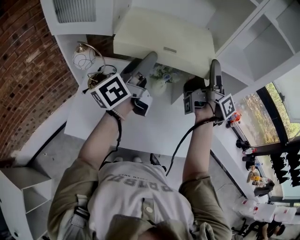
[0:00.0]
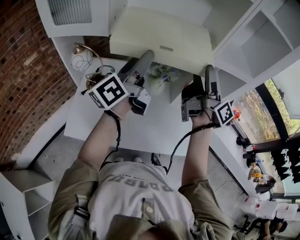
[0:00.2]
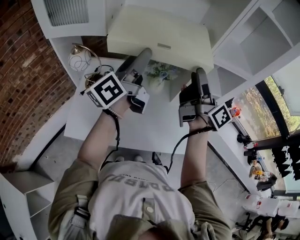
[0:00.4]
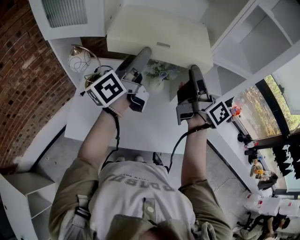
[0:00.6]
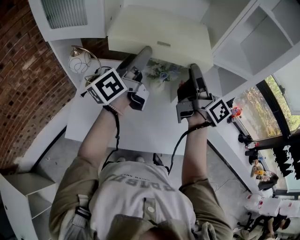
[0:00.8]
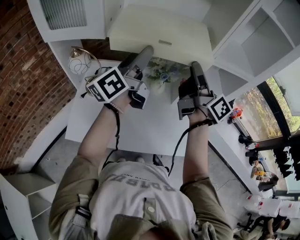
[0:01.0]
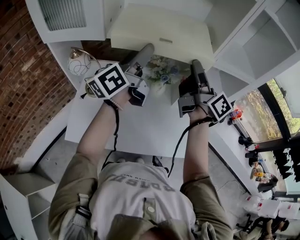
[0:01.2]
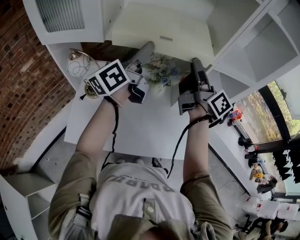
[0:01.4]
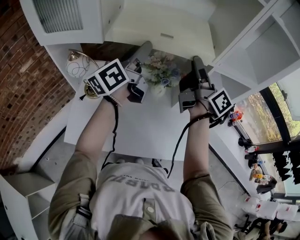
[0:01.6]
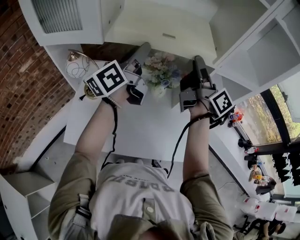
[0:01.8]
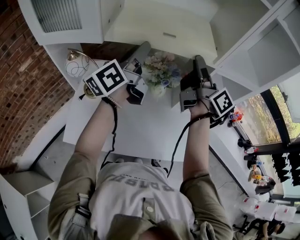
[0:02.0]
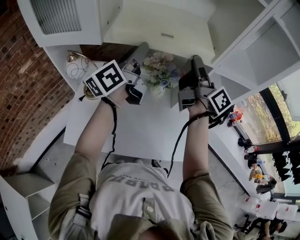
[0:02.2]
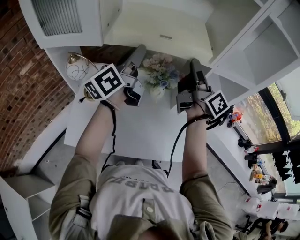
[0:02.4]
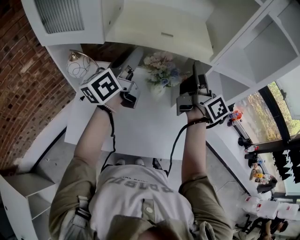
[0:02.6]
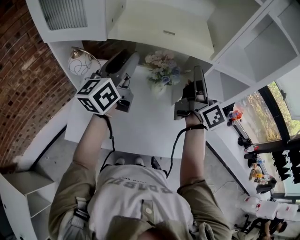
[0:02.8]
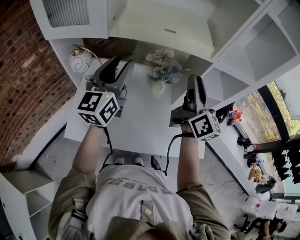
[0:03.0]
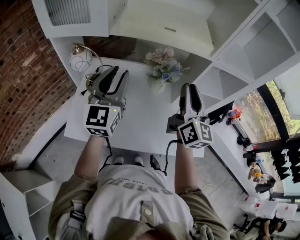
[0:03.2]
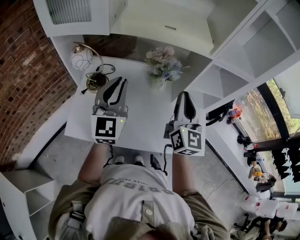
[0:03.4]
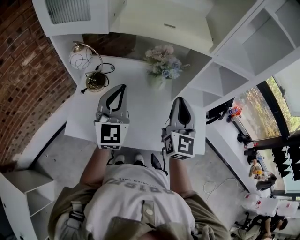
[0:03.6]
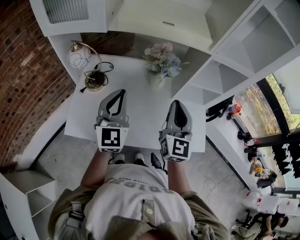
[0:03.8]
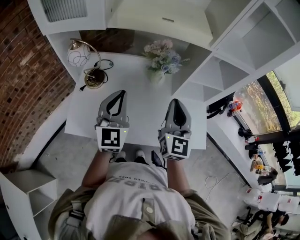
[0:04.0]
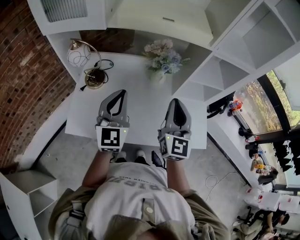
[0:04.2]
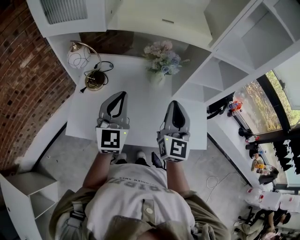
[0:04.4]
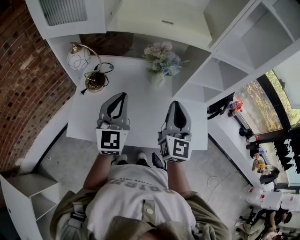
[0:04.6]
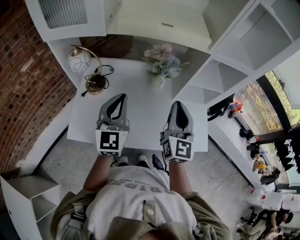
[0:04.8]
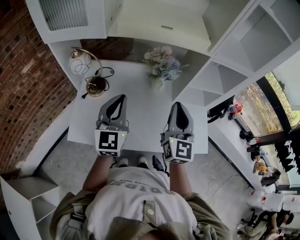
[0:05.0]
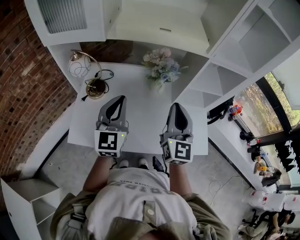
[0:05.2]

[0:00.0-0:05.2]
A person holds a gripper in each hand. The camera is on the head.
0.0 to 1.8 s: The right gripper shifts some 5 cm forward, and closes its fingers. The left gripper shifts some 10 cm forward.
1.8 to 3.4 s: Both grippers travel together backward and downward, some 15 cm. The left gripper rotates around the line of its fingers by roughly 60 degrees, clockwise from behind. Meanwhile the right gripper rolls counterclockwise, seen from behind, by about 60 degrees.
3.4 to 5.2 s: The left gripper changes place by approximately 5 cm.

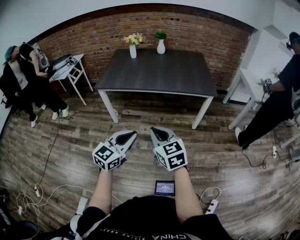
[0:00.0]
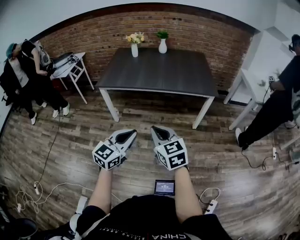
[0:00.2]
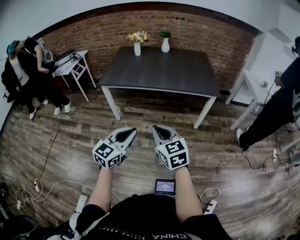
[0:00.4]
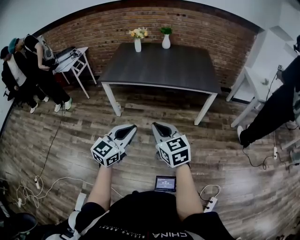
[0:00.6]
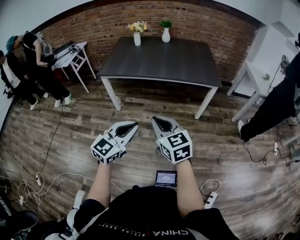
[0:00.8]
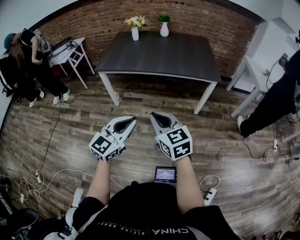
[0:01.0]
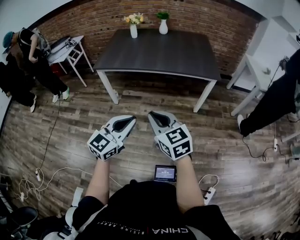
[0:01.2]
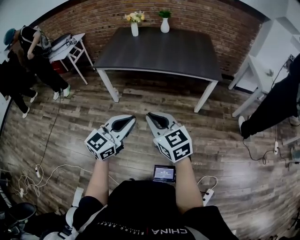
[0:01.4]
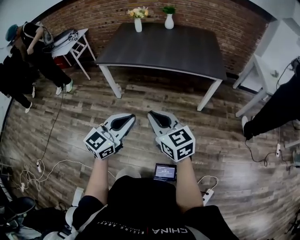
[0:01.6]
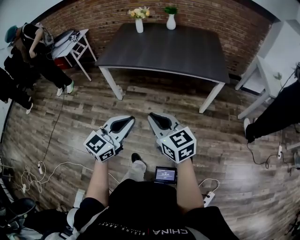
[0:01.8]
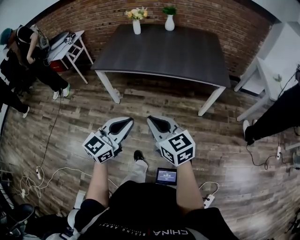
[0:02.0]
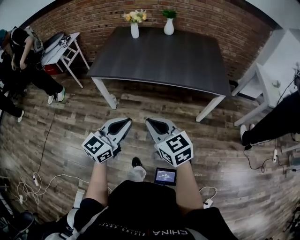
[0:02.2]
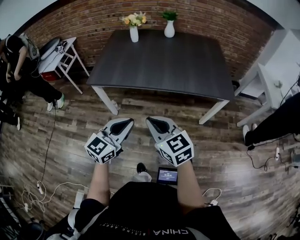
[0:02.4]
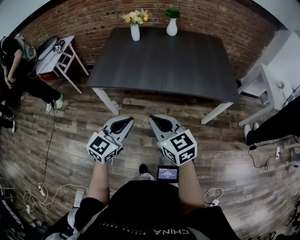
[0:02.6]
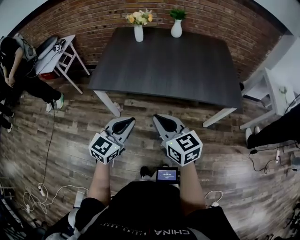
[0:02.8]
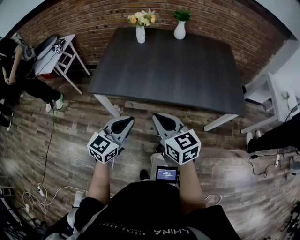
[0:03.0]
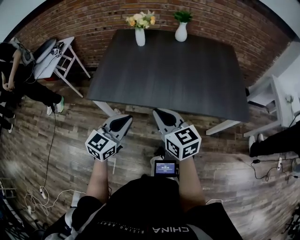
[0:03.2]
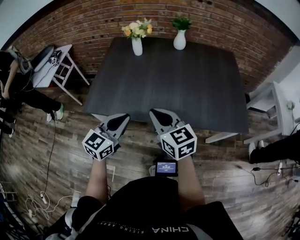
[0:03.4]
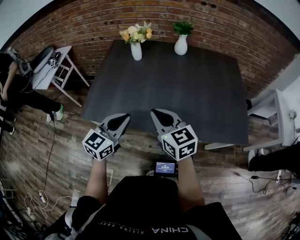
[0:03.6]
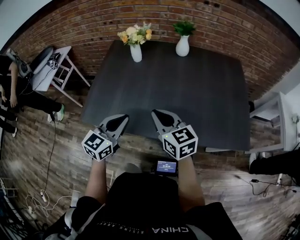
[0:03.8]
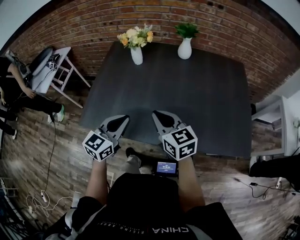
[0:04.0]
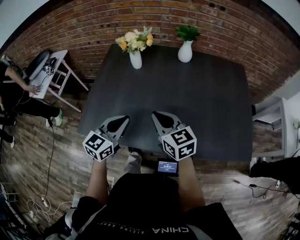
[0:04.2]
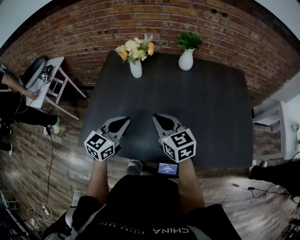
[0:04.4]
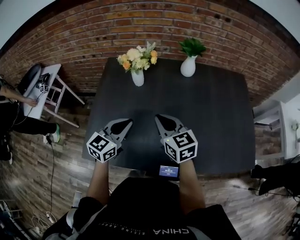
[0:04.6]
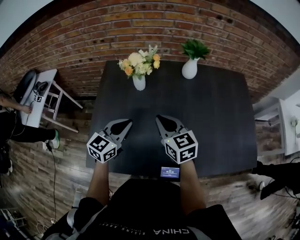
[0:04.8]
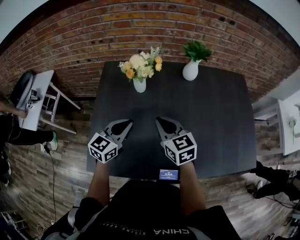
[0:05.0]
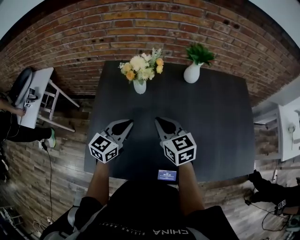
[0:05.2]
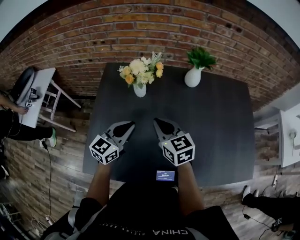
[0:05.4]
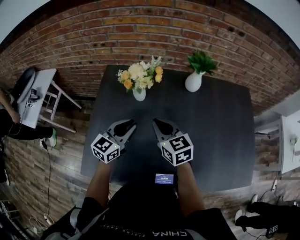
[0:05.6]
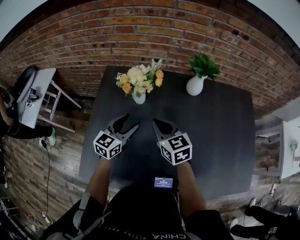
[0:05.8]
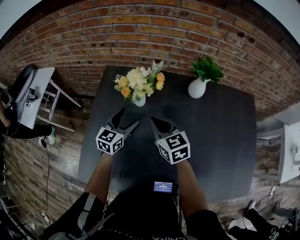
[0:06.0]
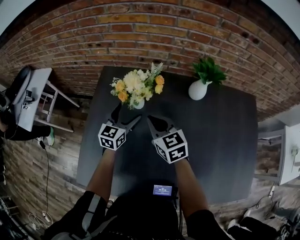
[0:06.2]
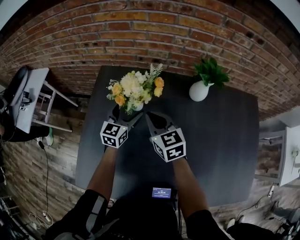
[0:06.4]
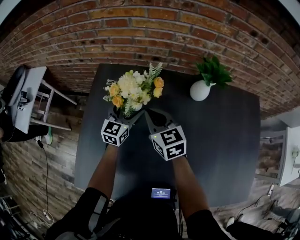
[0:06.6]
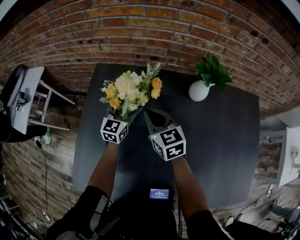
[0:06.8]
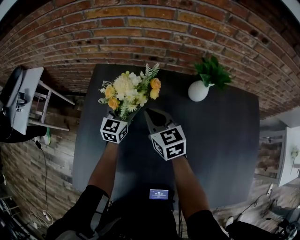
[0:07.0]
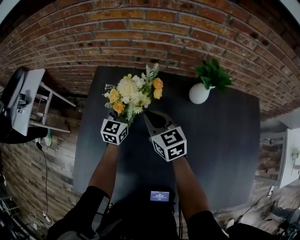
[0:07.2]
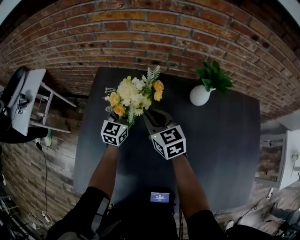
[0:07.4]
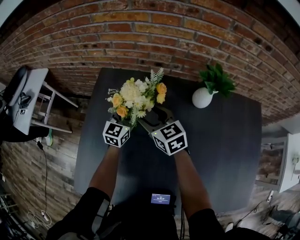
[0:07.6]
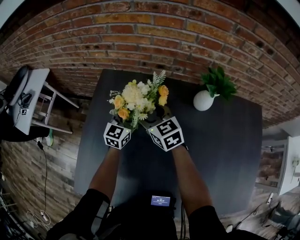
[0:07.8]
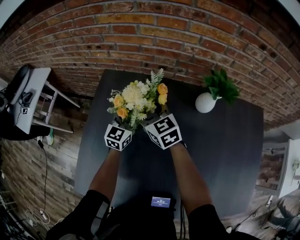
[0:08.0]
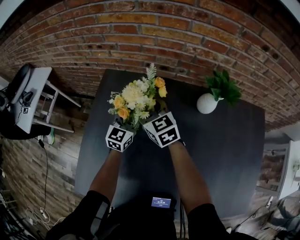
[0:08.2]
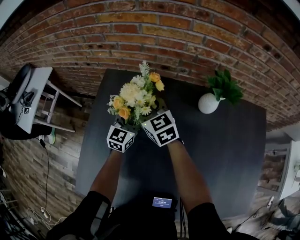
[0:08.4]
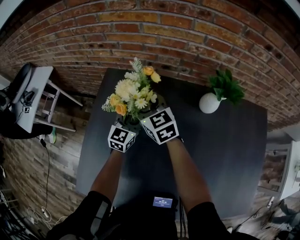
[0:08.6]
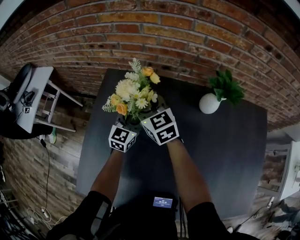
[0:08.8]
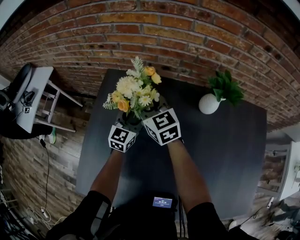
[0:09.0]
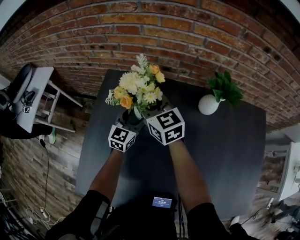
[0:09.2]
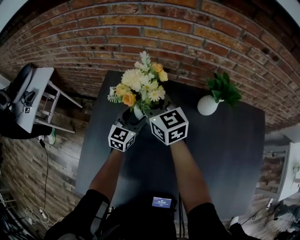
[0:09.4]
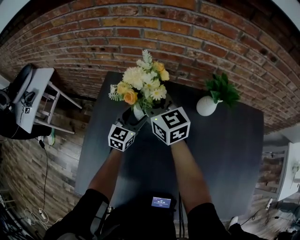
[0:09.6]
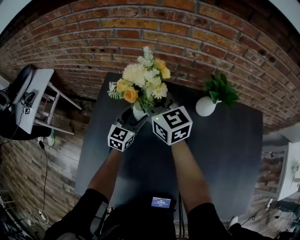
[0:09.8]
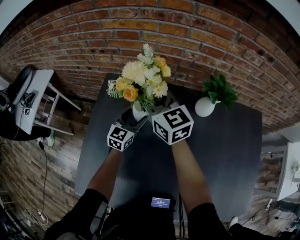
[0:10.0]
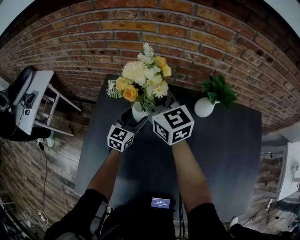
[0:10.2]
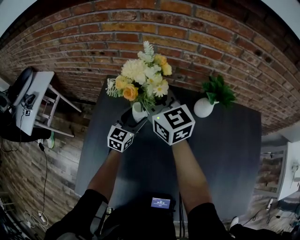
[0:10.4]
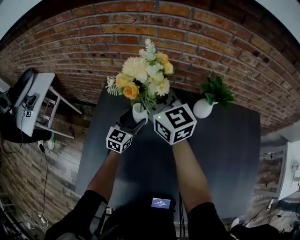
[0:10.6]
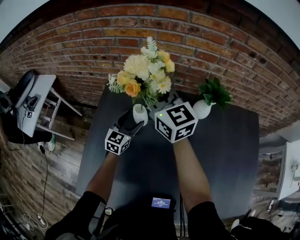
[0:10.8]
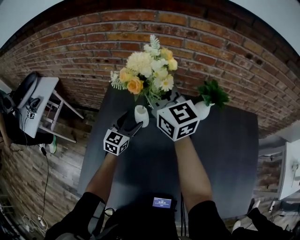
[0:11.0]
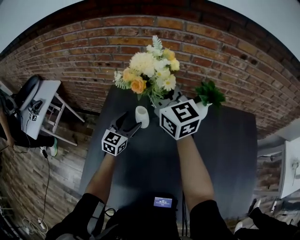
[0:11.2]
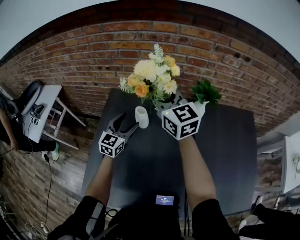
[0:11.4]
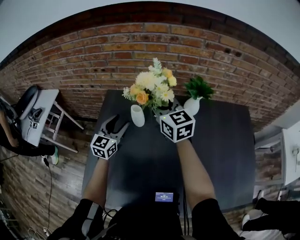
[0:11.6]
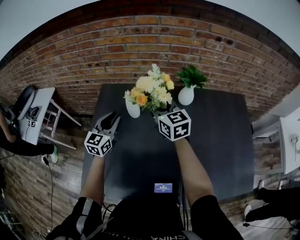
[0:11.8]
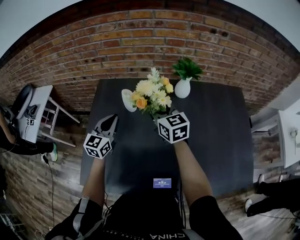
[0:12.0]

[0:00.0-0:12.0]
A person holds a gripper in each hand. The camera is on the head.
0.0 to 1.6 s: The left gripper changes place by some 5 cm.
1.6 to 3.0 s: The left gripper is displaced forward and to the left by approximately 40 cm; the right gripper shifts some 40 cm forward.
3.0 to 4.4 s: Both grippers travel together forward, some 40 cm.
4.4 to 6.0 s: Both grippers move forward, about 25 cm. The left gripper opens up.
6.0 to 7.6 s: Both grippers travel together forward, about 10 cm. The right gripper opens.
7.6 to 9.0 s: The right gripper travels forward by approximately 5 cm.
9.0 to 10.4 s: The right gripper heads upward, covering roughly 10 cm.
10.4 to 12.0 s: The left gripper goes roughly 20 cm backward and upward, and closes. Meanwhile the right gripper travels backward and to the right by some 20 cm.

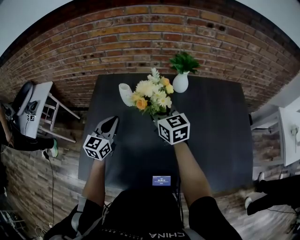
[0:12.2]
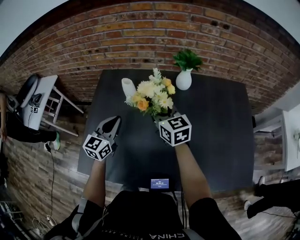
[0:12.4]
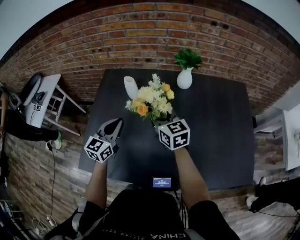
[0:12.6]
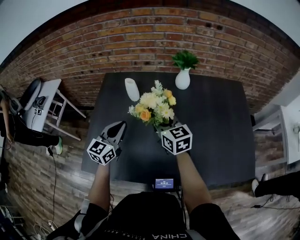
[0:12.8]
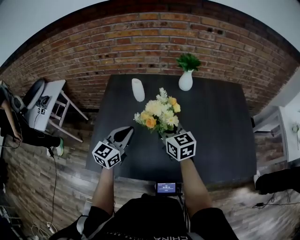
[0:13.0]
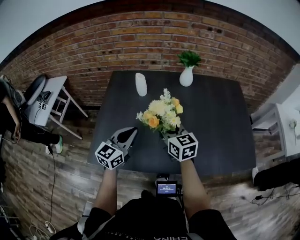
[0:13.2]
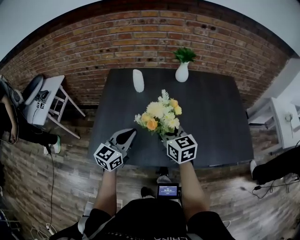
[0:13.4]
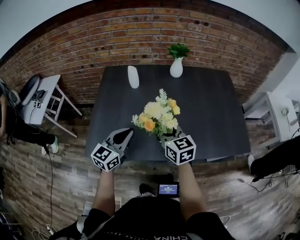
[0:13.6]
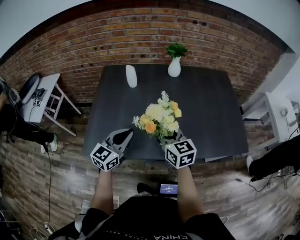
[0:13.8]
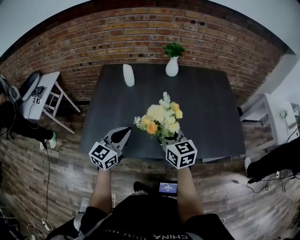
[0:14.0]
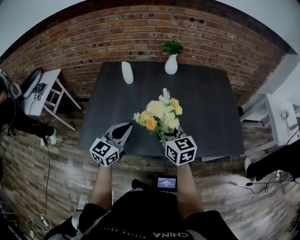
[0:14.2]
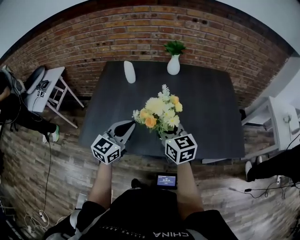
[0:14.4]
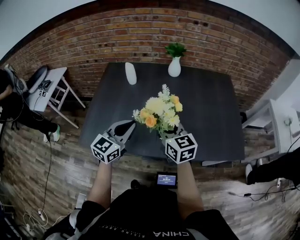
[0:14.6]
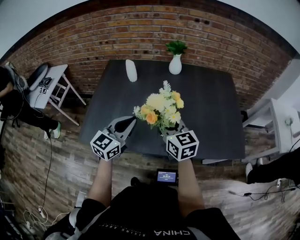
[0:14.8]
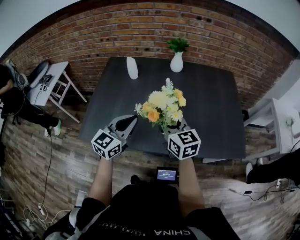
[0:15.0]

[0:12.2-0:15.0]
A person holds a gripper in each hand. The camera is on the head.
12.2 to 13.6 s: Both grippers travel together backward, approximately 30 cm.
13.6 to 15.0 s: The grippers both shift to the right by about 10 cm.

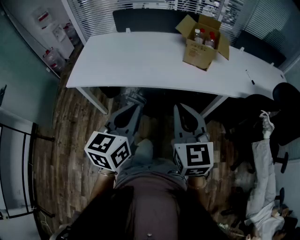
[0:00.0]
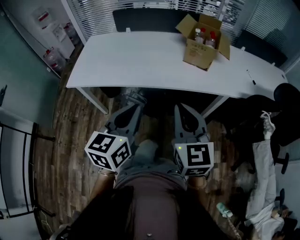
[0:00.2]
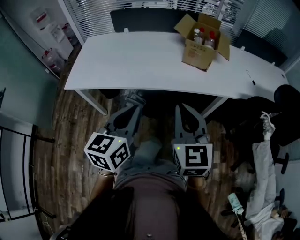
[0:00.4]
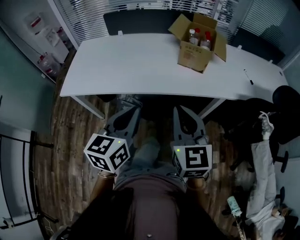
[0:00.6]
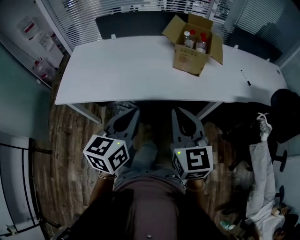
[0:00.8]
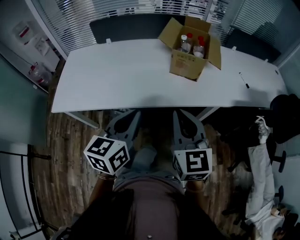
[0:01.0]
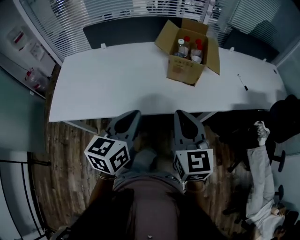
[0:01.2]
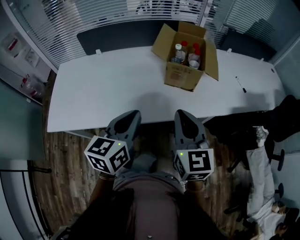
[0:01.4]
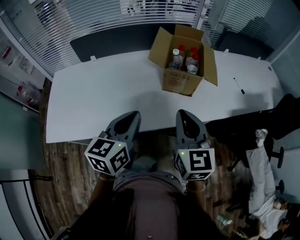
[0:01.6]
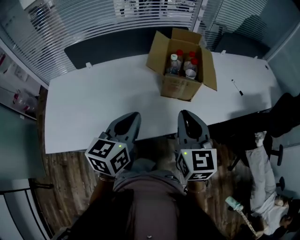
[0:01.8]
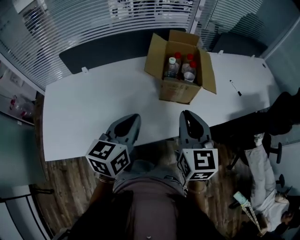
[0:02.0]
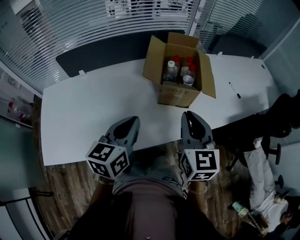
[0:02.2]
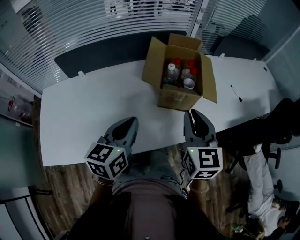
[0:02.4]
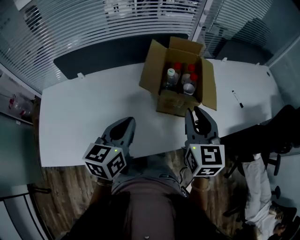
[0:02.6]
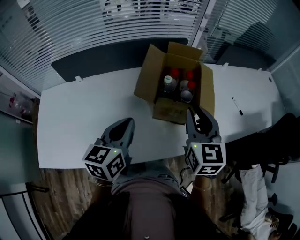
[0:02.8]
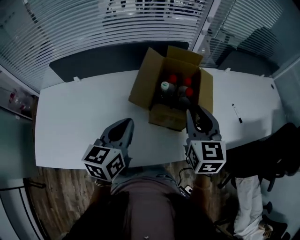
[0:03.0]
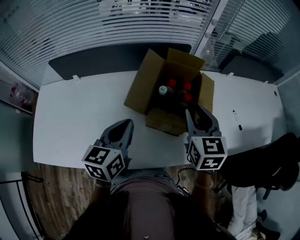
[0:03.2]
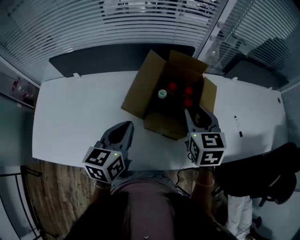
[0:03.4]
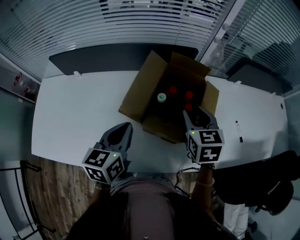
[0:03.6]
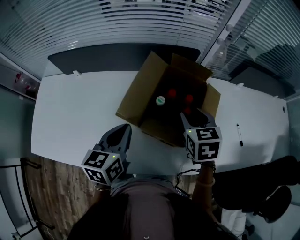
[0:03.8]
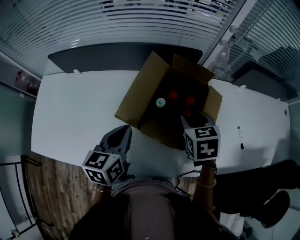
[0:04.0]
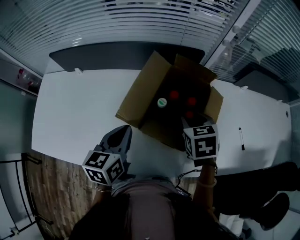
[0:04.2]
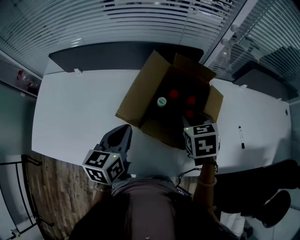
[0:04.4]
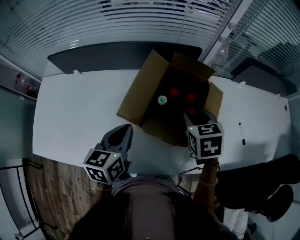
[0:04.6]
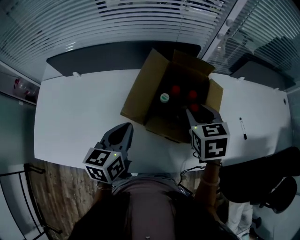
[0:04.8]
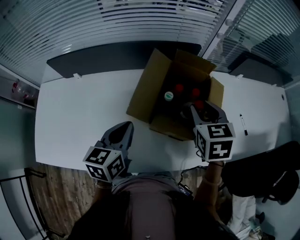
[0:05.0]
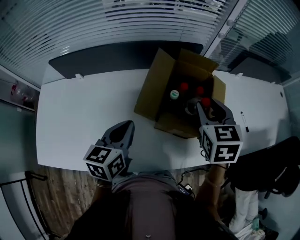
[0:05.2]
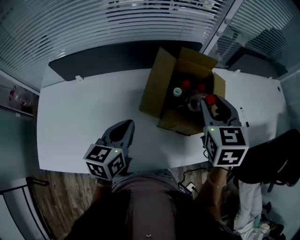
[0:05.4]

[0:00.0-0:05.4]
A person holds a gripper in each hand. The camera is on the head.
0.0 to 1.4 s: The two grippers go about 25 cm forward.
1.4 to 2.8 s: Both grippers travel together forward, roughly 25 cm.
2.8 to 4.0 s: The right gripper goes some 20 cm forward and downward, and tips its fingers downward by about 30 degrees; the left gripper is displaced forward and downward by about 10 cm.
4.0 to 5.4 s: The right gripper heads upward, covering roughly 15 cm, and changes its angle by approximately 20 degrees; the left gripper heads to the left, covering roughly 10 cm.
